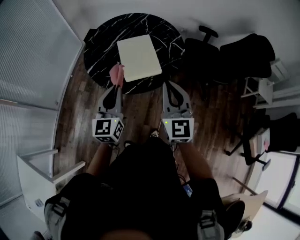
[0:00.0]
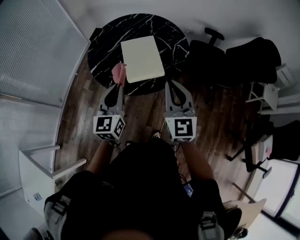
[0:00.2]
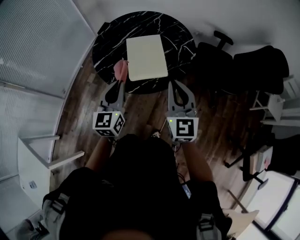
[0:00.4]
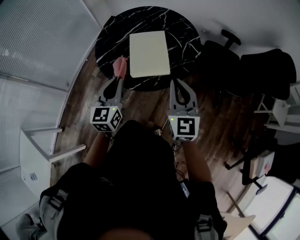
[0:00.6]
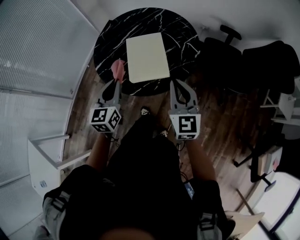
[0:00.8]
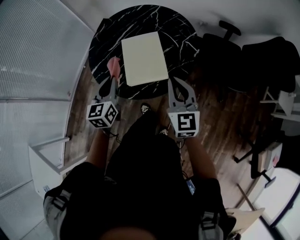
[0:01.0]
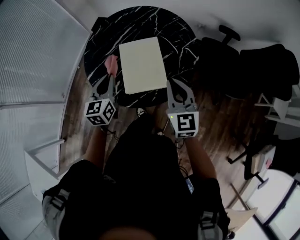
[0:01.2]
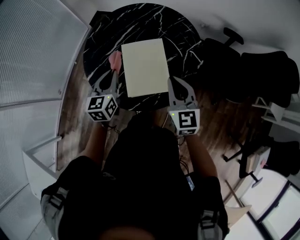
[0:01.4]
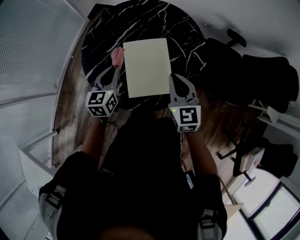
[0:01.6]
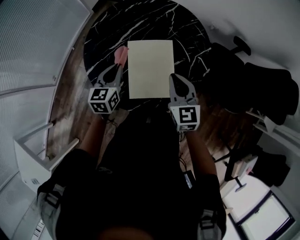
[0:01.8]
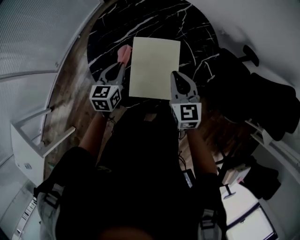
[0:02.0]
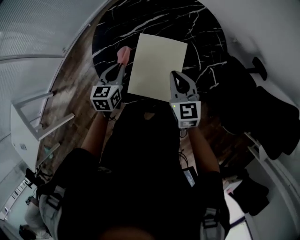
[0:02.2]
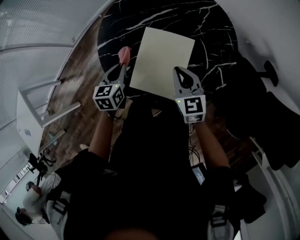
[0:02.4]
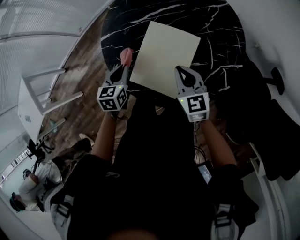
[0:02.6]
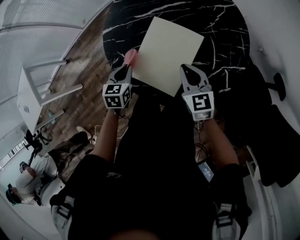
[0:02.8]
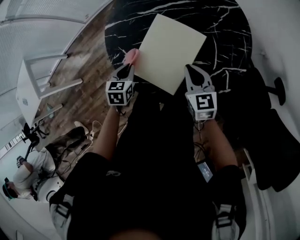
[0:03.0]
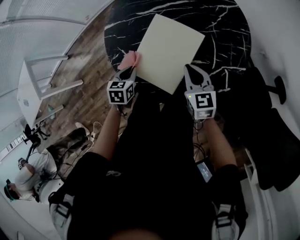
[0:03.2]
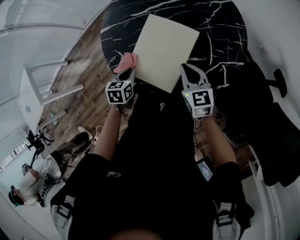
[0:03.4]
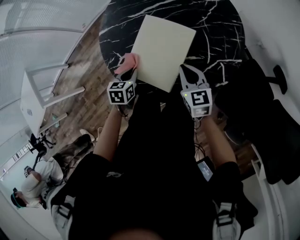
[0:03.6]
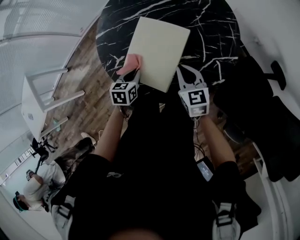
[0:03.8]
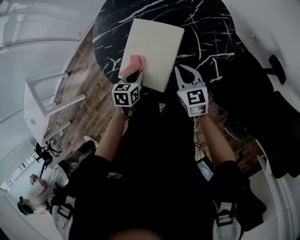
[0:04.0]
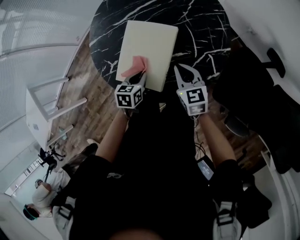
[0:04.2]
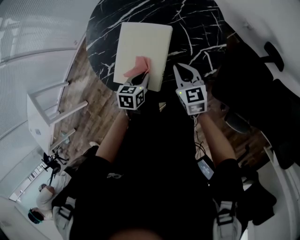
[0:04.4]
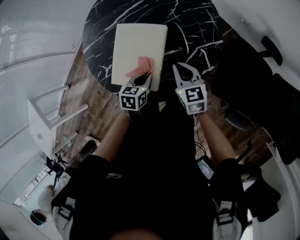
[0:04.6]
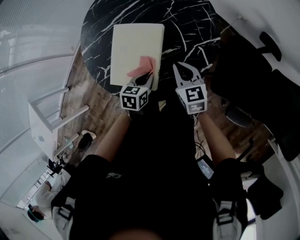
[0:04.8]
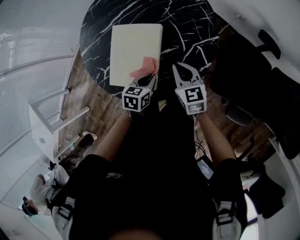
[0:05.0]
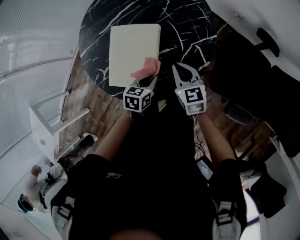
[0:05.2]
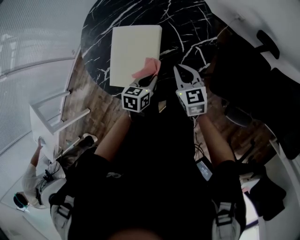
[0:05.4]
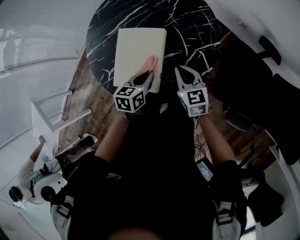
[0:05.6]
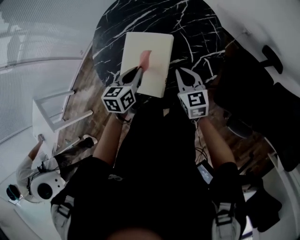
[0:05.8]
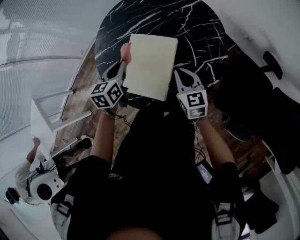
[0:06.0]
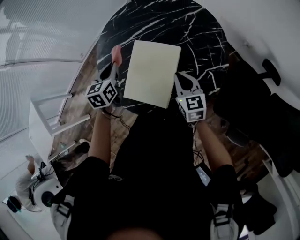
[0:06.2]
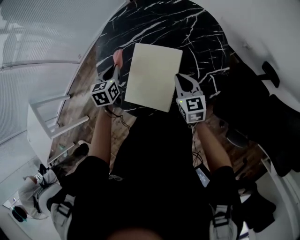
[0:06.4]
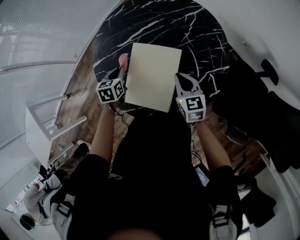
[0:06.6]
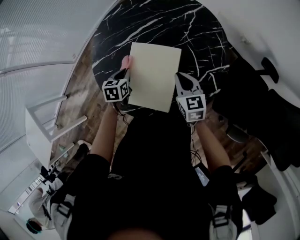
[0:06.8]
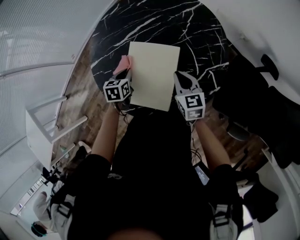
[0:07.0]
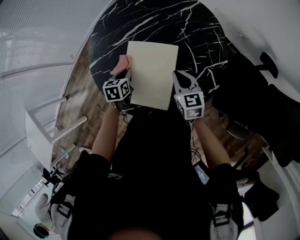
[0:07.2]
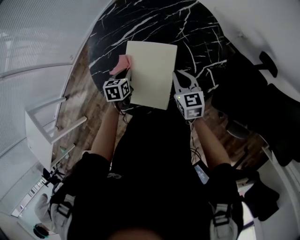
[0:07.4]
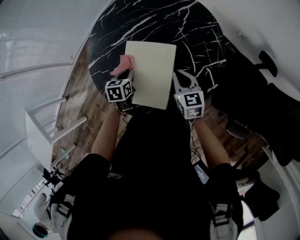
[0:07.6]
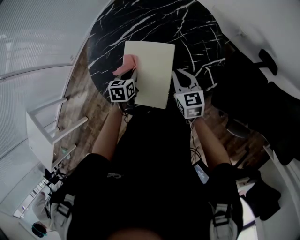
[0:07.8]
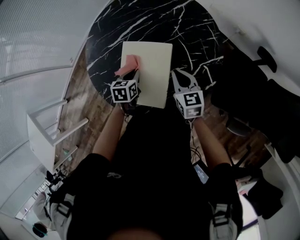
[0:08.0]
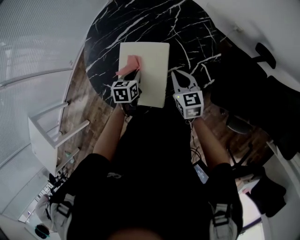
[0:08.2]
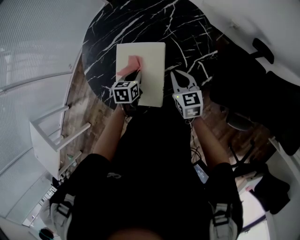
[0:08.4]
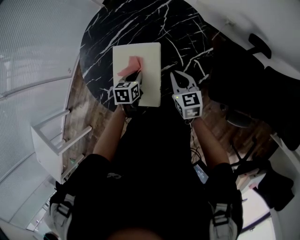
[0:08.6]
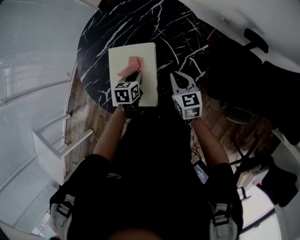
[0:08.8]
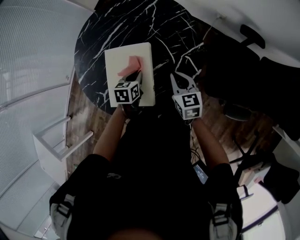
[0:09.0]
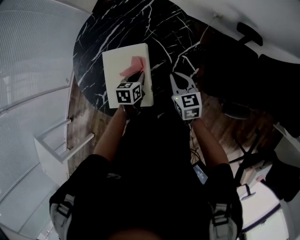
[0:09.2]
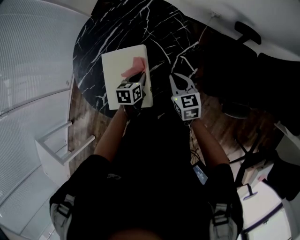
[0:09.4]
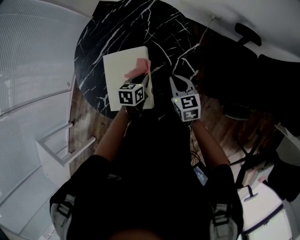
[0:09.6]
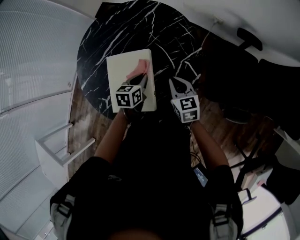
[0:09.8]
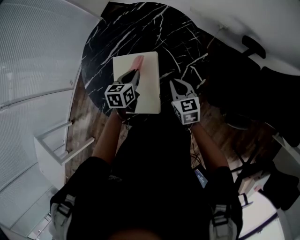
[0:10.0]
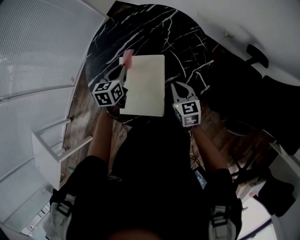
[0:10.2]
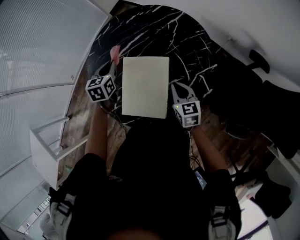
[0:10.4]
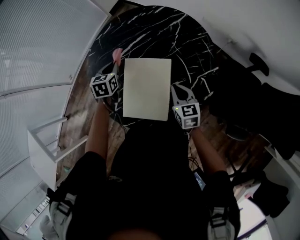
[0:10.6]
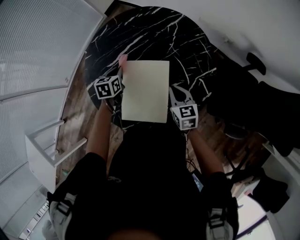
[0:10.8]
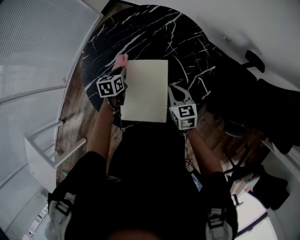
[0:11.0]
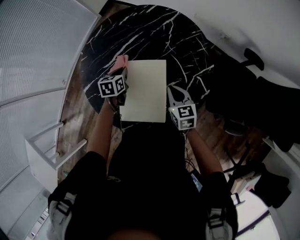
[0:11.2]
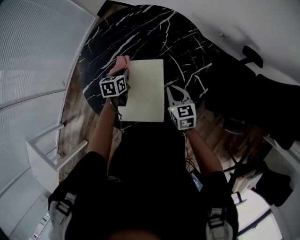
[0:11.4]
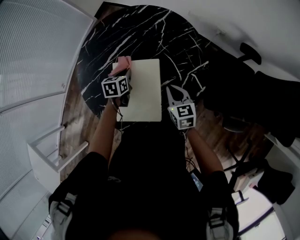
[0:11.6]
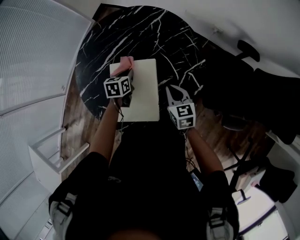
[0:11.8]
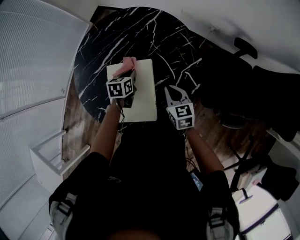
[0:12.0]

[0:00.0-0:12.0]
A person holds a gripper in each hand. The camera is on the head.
0:00.0 to 0:01.6: The right gripper shifts roughly 30 cm forward and downward, and turns by some 20 degrees. Meanwhile the left gripper heads forward, covering roughly 30 cm, and turns by some 20 degrees.
0:01.6 to 0:03.0: The grippers both shift downward by some 15 cm. The left gripper changes its angle by approximately 40 degrees; the right gripper changes its angle by roughly 40 degrees.
0:03.0 to 0:04.4: The right gripper goes roughly 5 cm to the right; the left gripper goes about 15 cm to the right.
0:04.4 to 0:06.0: The left gripper travels upward, to the left and forward by roughly 20 cm, and rotates about 20 degrees.
0:06.0 to 0:07.6: The right gripper ends up roughly 5 cm from where it was. The left gripper travels downward by some 15 cm.
0:07.6 to 0:09.0: The left gripper moves to the right, approximately 15 cm. Meanwhile the right gripper goes roughly 10 cm to the right.
0:09.0 to 0:10.4: The right gripper shifts approximately 5 cm to the left; the left gripper moves to the left, upward and forward, roughly 25 cm, and swivels roughly 20 degrees.
0:10.4 to 0:12.0: The left gripper is displaced to the right and downward by roughly 20 cm, and swivels approximately 20 degrees.

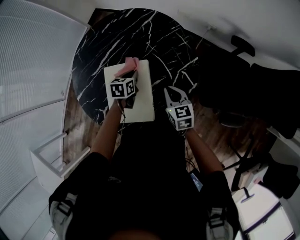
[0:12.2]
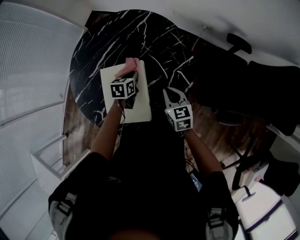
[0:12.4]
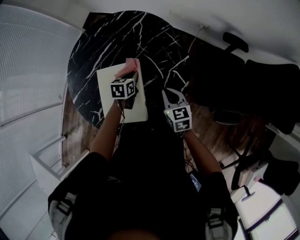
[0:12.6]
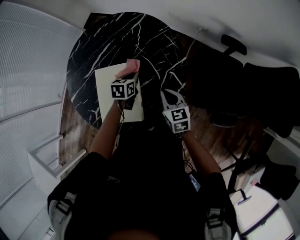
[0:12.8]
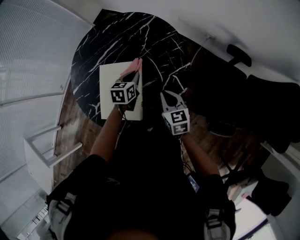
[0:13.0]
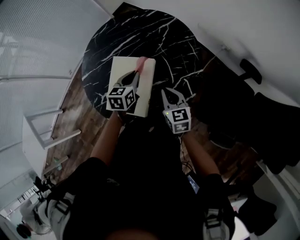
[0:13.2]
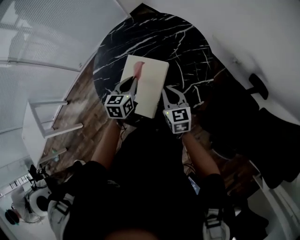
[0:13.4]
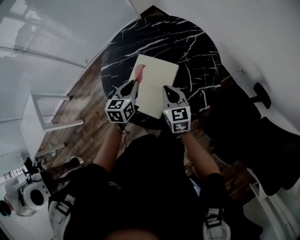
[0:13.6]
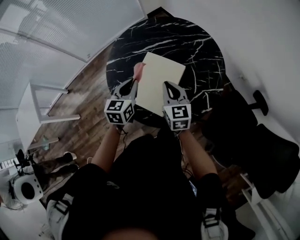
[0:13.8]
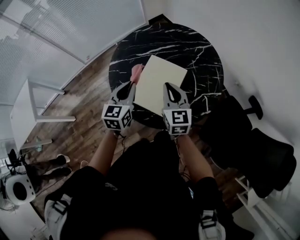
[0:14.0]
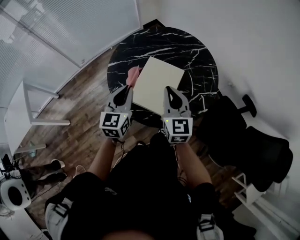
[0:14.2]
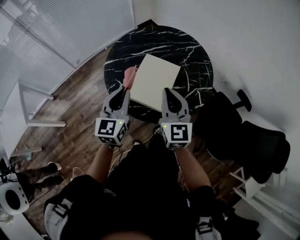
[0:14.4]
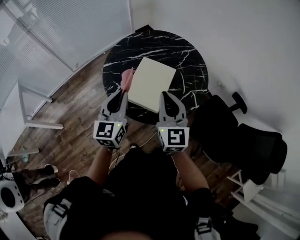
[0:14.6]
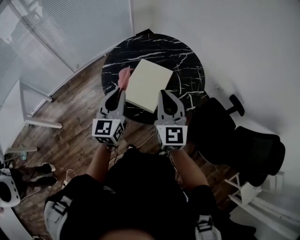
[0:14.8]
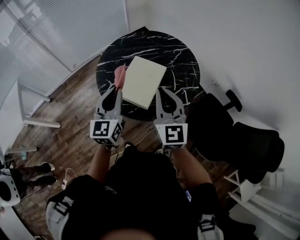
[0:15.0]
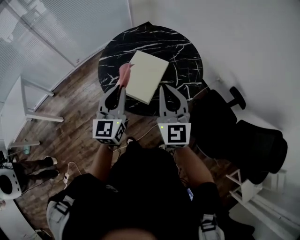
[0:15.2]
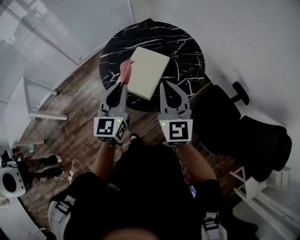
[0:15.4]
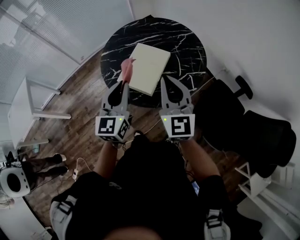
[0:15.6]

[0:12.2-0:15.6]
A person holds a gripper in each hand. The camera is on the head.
0:12.2 to 0:13.8: The right gripper shifts by approximately 15 cm, and rotates some 30 degrees, while the left gripper shifts by about 25 cm, and rotates approximately 40 degrees.
0:13.8 to 0:15.6: The right gripper moves upward and backward, some 25 cm, and swivels about 30 degrees. Meanwhile the left gripper is displaced backward and upward by about 25 cm, and turns by some 20 degrees.

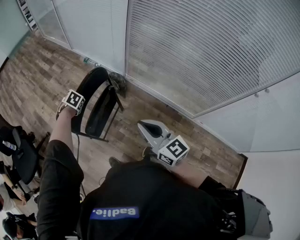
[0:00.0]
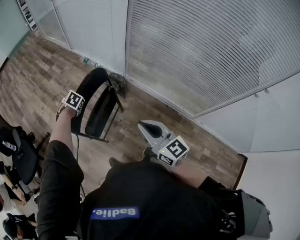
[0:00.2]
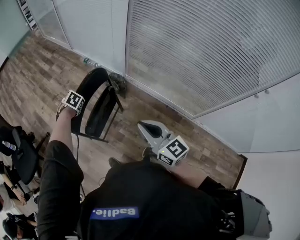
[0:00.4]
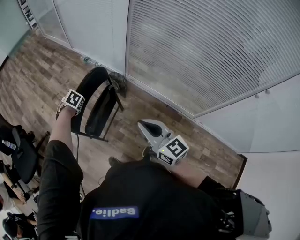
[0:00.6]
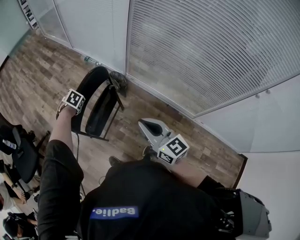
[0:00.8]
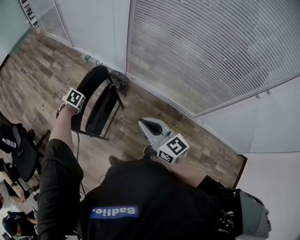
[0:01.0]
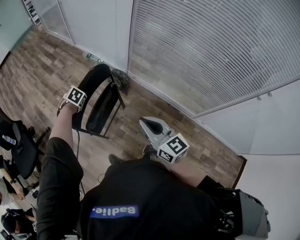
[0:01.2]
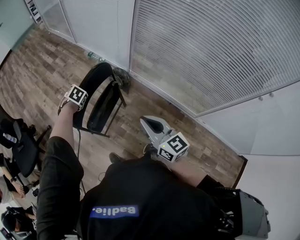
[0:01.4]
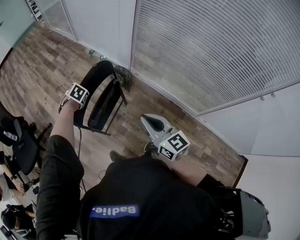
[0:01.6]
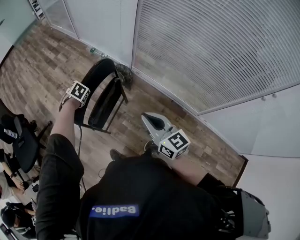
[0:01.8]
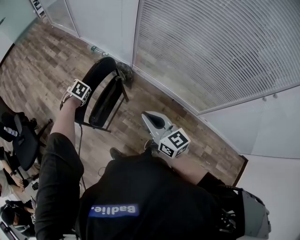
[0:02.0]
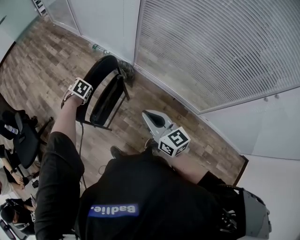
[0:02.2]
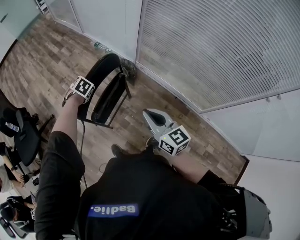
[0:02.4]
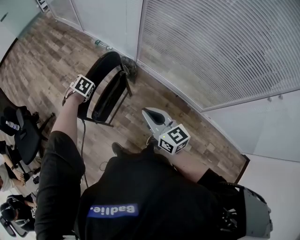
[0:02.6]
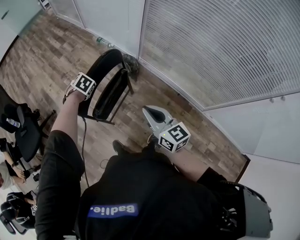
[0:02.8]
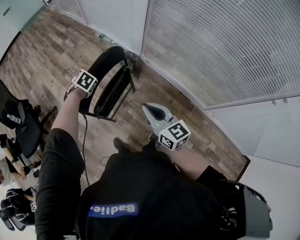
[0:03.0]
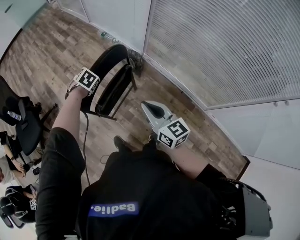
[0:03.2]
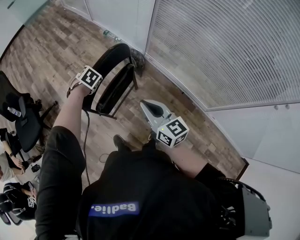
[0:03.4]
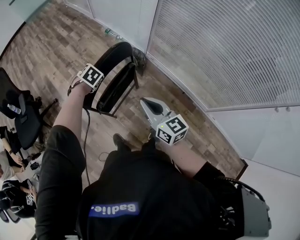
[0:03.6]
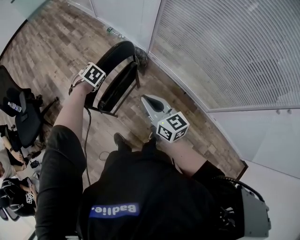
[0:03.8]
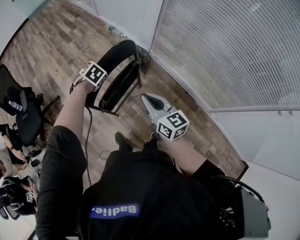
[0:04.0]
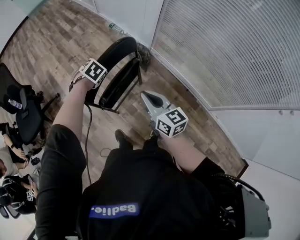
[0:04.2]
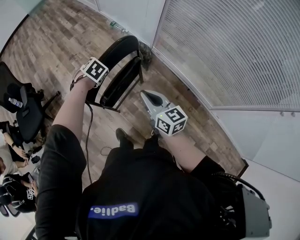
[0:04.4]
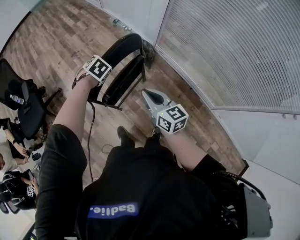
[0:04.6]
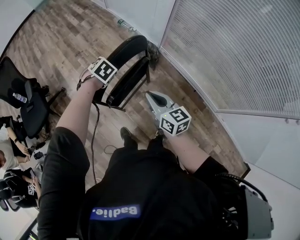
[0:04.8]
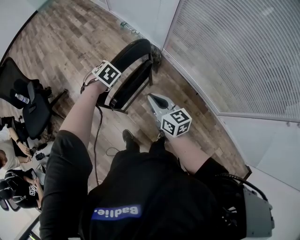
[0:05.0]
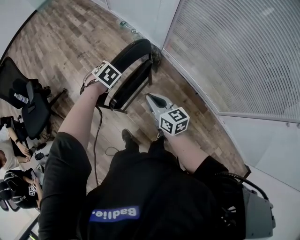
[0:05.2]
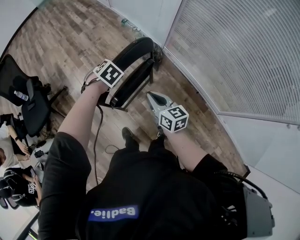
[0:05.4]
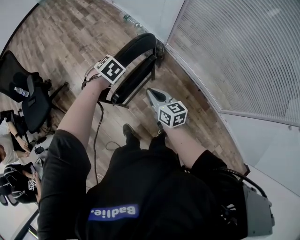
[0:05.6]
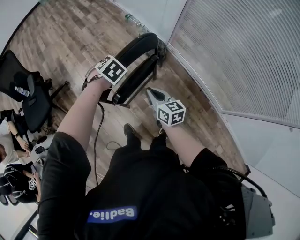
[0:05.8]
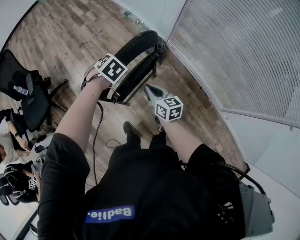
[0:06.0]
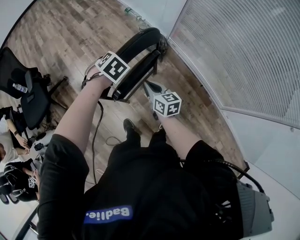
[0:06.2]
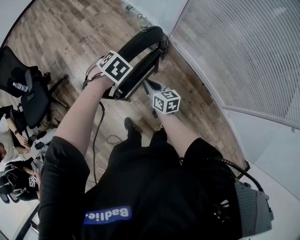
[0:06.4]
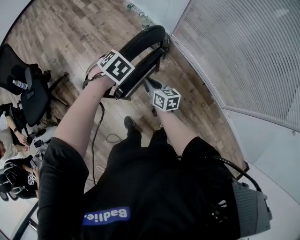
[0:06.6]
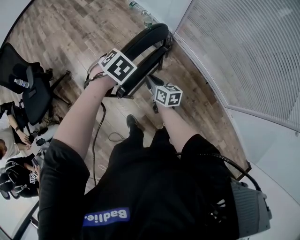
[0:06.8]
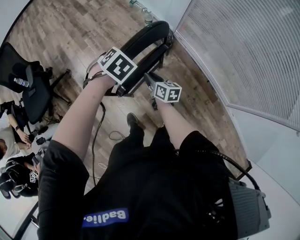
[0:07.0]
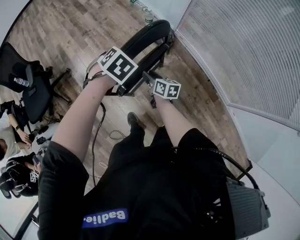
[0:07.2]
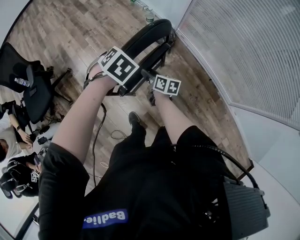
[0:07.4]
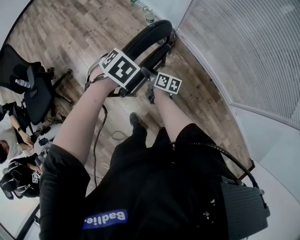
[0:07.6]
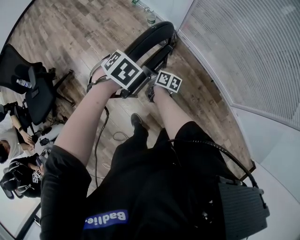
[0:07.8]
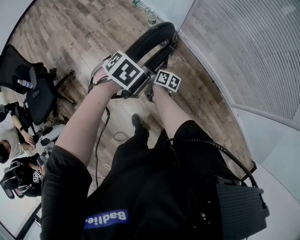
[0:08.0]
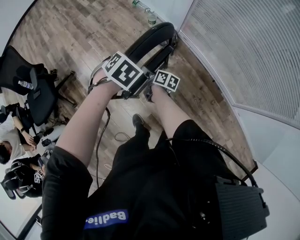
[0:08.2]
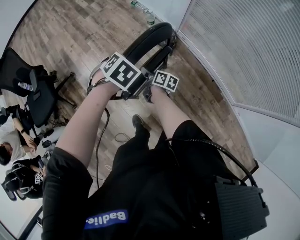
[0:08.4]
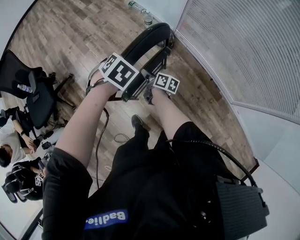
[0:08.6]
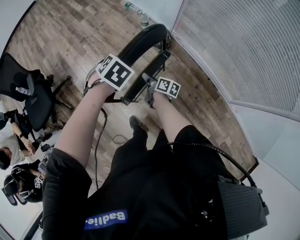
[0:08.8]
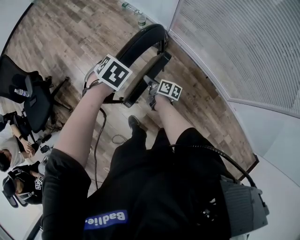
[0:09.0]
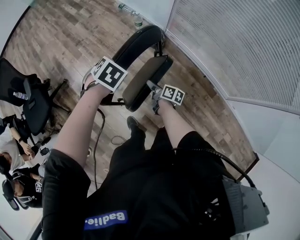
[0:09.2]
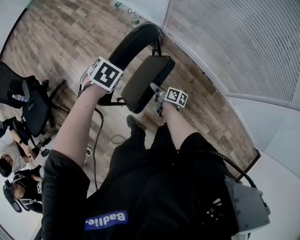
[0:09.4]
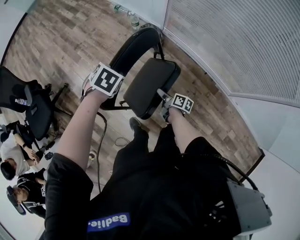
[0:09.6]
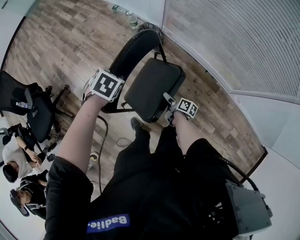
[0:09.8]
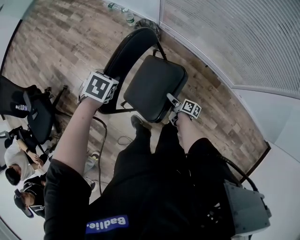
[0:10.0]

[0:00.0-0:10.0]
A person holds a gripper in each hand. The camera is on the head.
0:00.0 to 0:01.4: The grippers make only small movements.
0:01.4 to 0:02.8: There are only small adjustments of the grippers.
0:02.8 to 0:04.2: The right gripper ends up roughly 10 cm from where it was.
0:04.2 to 0:05.8: The right gripper is displaced downward and forward by some 15 cm.
0:05.8 to 0:07.2: The right gripper heads downward and forward, covering about 15 cm, changes its angle by some 20 degrees, and opens up.
0:07.2 to 0:08.6: The right gripper swivels approximately 20 degrees.
0:08.6 to 0:10.0: The left gripper goes some 5 cm downward, while the right gripper moves about 30 cm.
